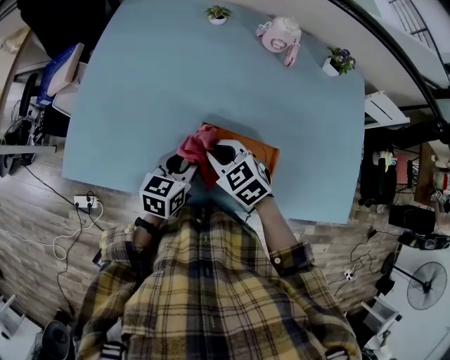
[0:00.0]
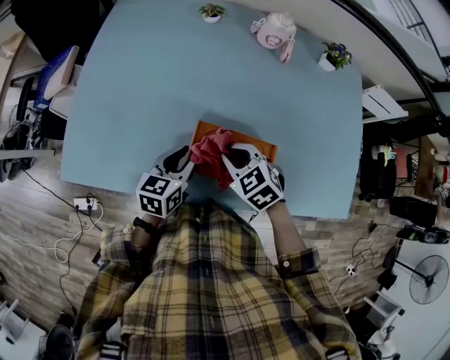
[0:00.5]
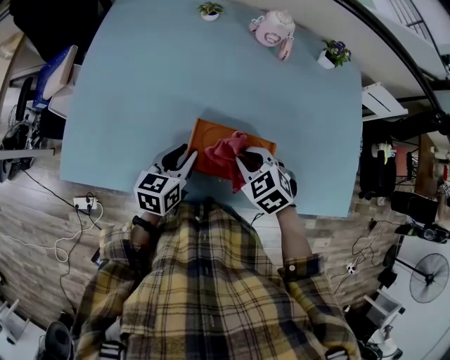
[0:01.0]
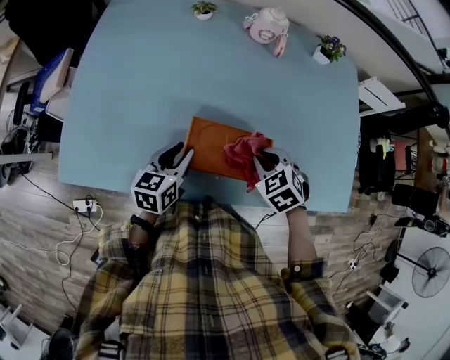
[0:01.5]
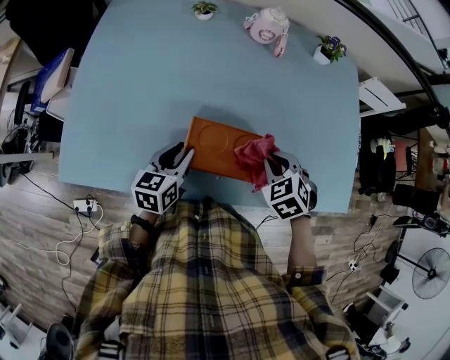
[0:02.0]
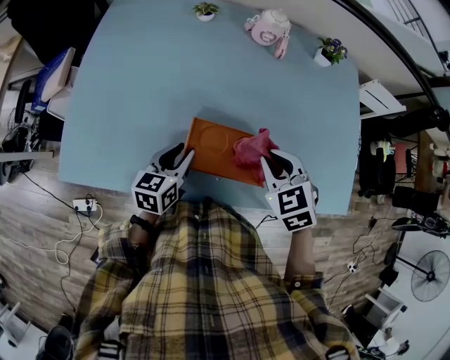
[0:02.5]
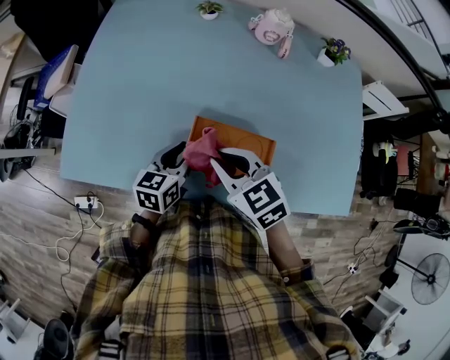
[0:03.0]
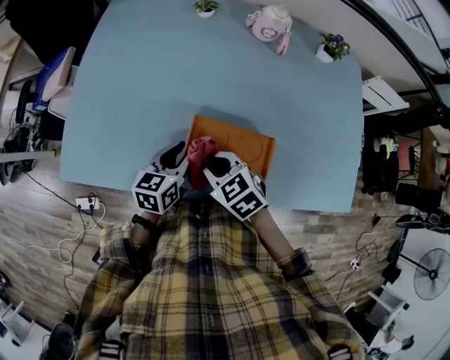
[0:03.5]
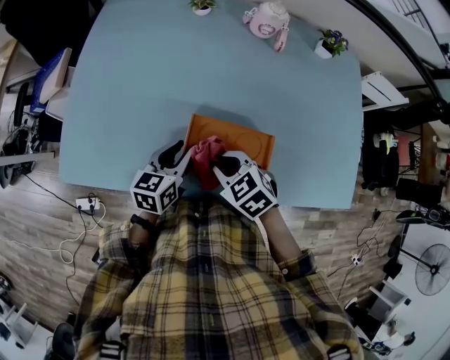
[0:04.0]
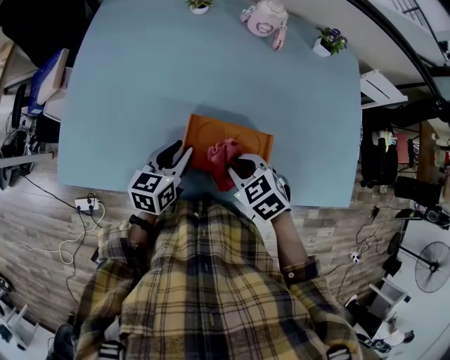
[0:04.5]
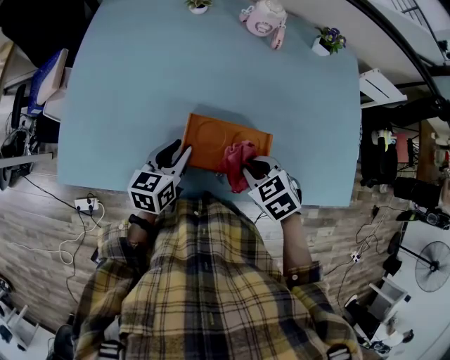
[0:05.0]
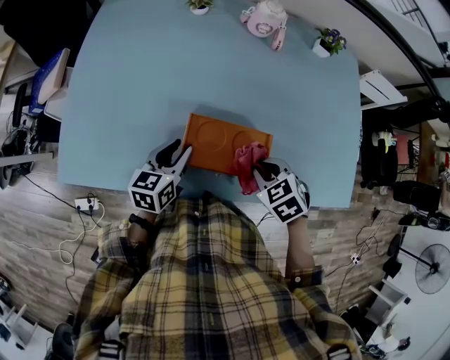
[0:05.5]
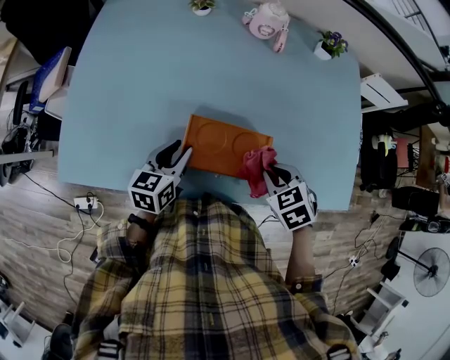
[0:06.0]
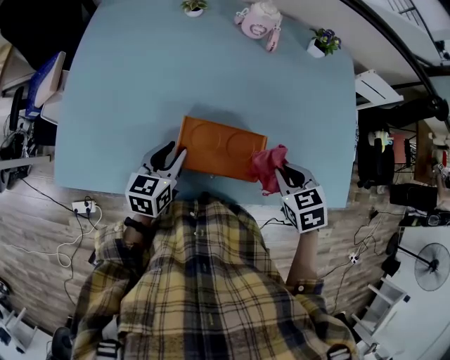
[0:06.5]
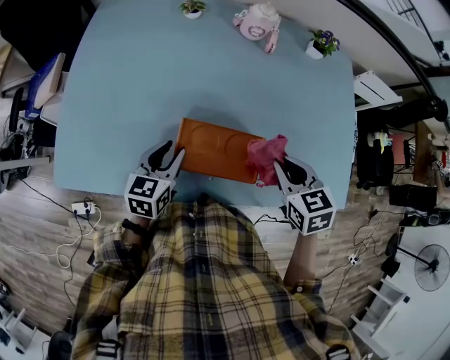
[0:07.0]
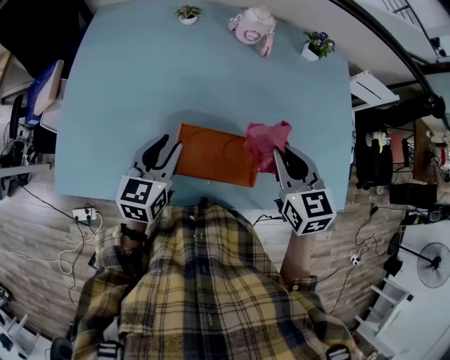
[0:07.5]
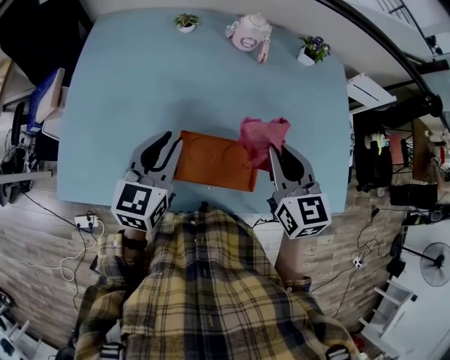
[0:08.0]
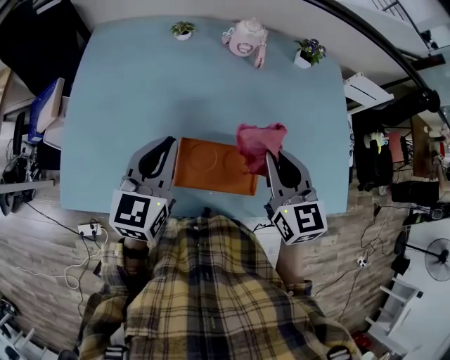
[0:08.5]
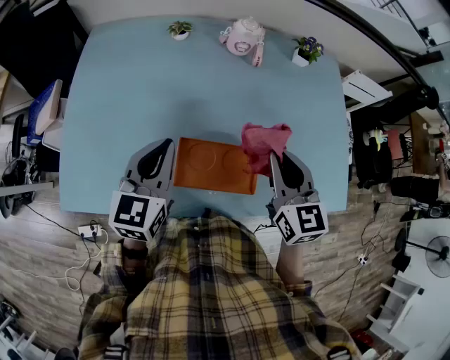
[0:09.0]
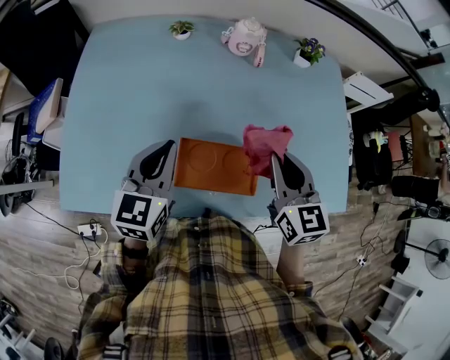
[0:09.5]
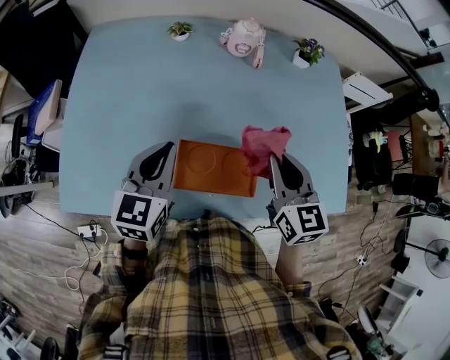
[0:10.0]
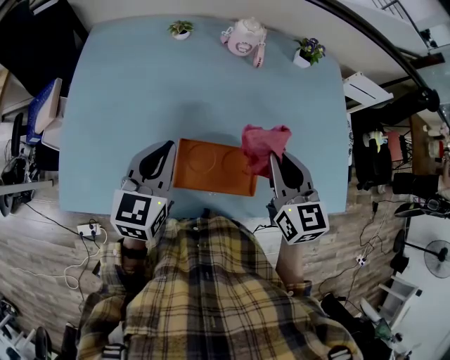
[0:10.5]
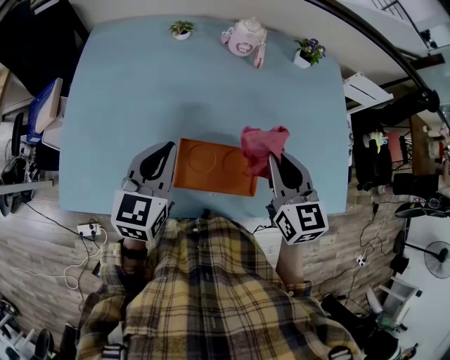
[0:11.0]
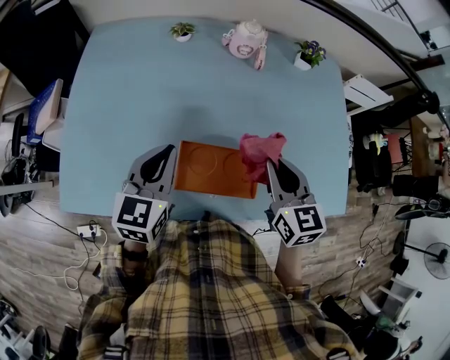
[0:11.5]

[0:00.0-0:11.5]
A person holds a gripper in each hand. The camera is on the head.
0:00.0 to 0:02.0: The right gripper moves to the right, some 20 cm, and rotates about 30 degrees.
0:02.0 to 0:04.0: The right gripper shifts some 15 cm to the left, and turns by some 30 degrees.
0:04.0 to 0:06.0: The right gripper travels to the right by about 15 cm, and turns by approximately 20 degrees.
0:06.0 to 0:07.5: The right gripper goes some 15 cm upward and forward, and points its fingers some 30 degrees further upward. Meanwhile the left gripper travels upward by some 5 cm.
0:07.5 to 0:09.5: The left gripper is displaced upward by some 10 cm, and closes up.
0:09.5 to 0:11.5: The grippers make only small movements.

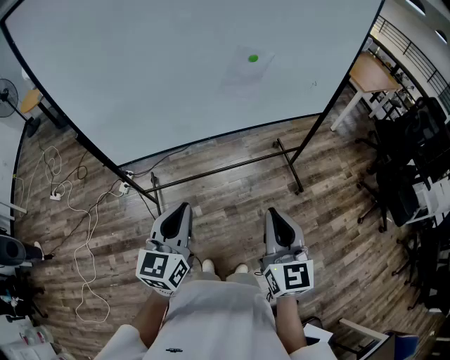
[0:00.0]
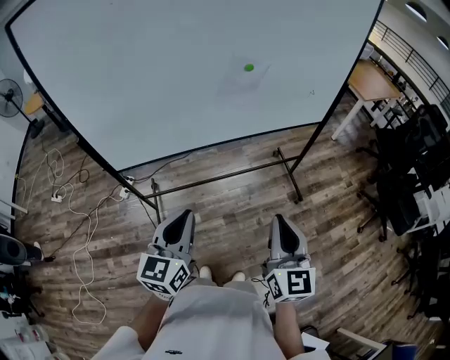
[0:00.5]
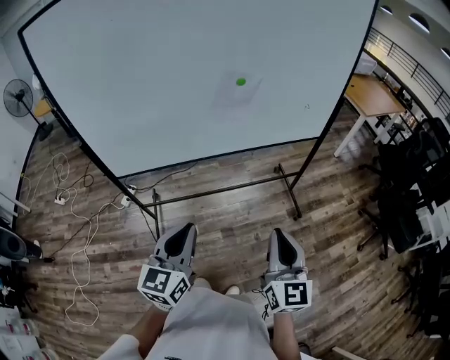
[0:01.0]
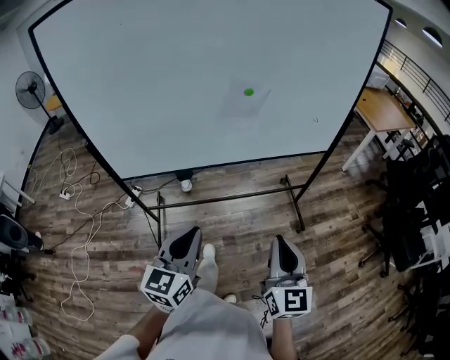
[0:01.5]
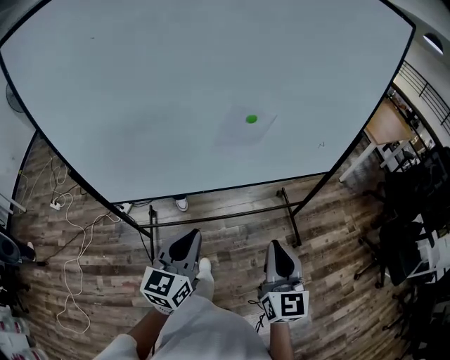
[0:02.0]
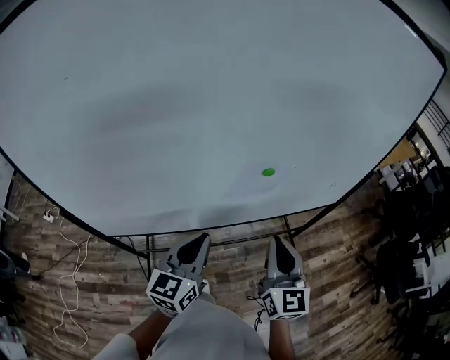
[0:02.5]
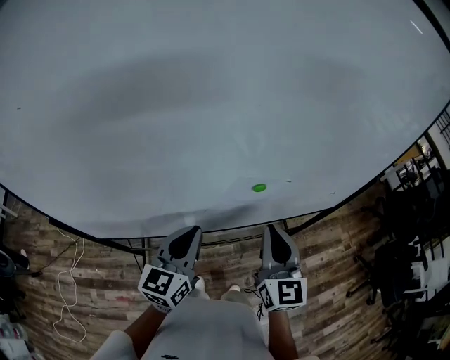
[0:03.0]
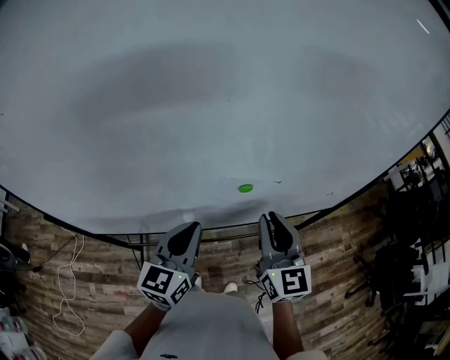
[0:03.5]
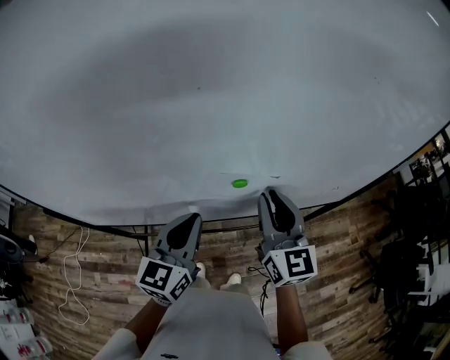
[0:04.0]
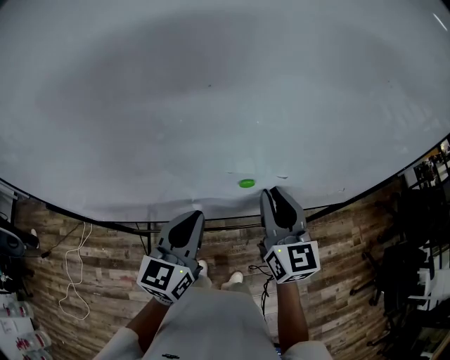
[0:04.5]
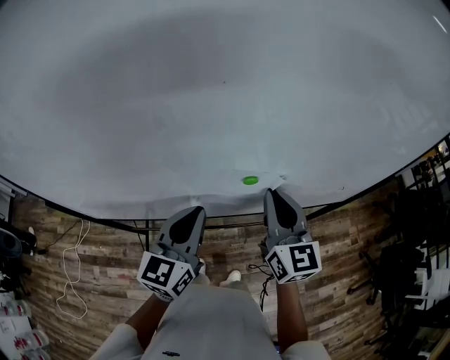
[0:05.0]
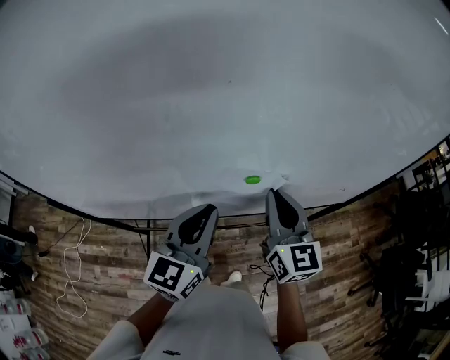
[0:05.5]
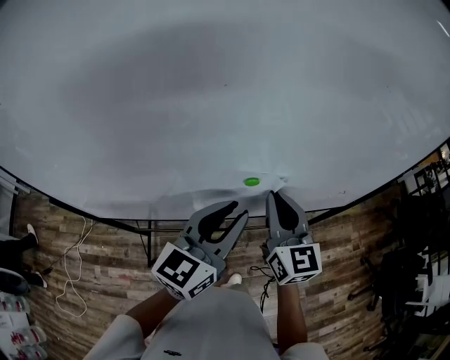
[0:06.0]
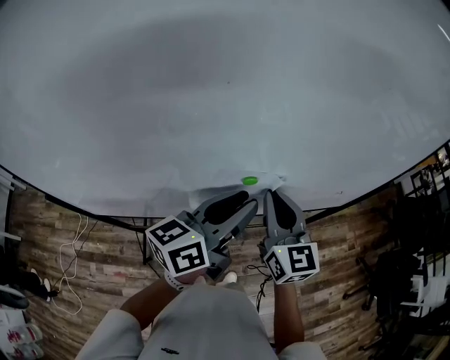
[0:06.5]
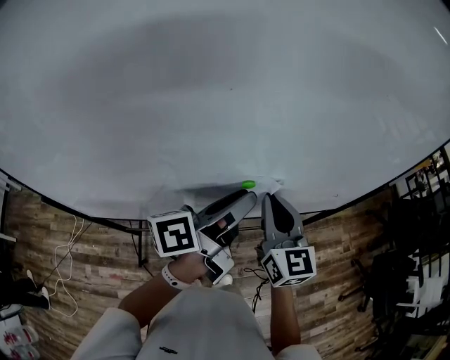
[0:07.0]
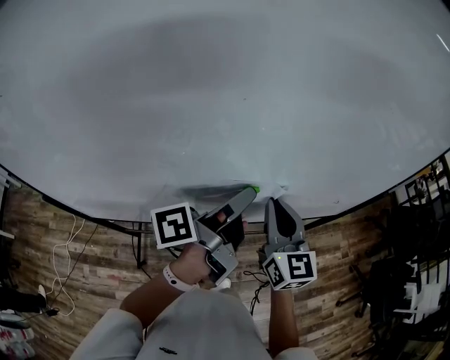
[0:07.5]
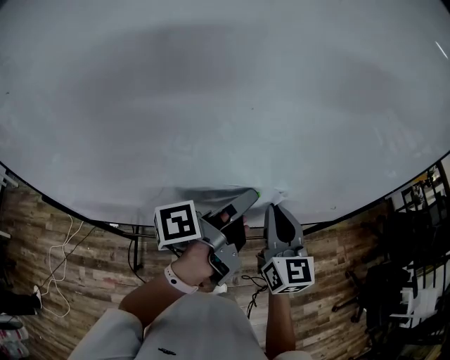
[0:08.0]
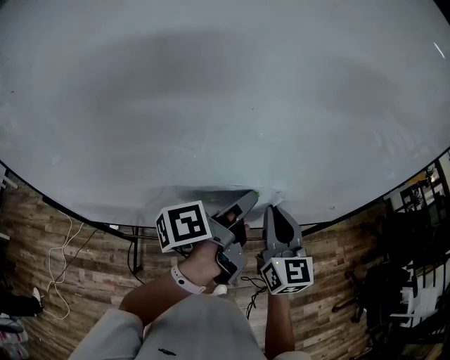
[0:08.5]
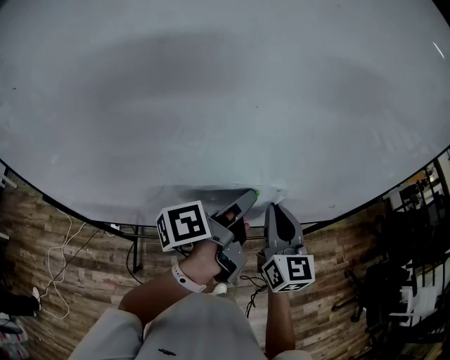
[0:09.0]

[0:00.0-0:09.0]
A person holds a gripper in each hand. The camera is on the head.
0:00.0 to 0:02.0: Both grippers move forward and to the right, approximately 15 cm.
0:02.0 to 0:04.5: Both grippers travel together forward, approximately 30 cm.
0:04.5 to 0:07.0: The left gripper moves to the right and upward, about 10 cm, rotates around the line of its fingers by approximately 50 degrees, counterclockwise from behind, and opens.

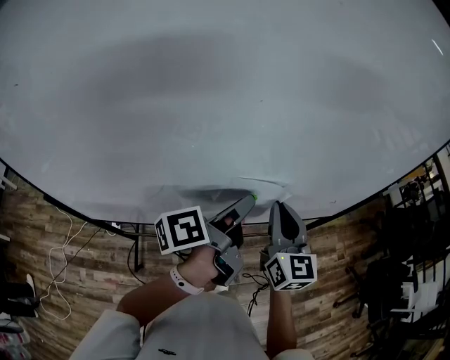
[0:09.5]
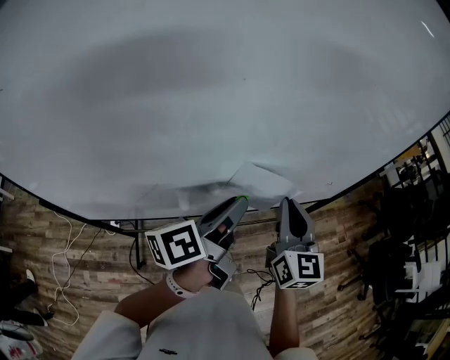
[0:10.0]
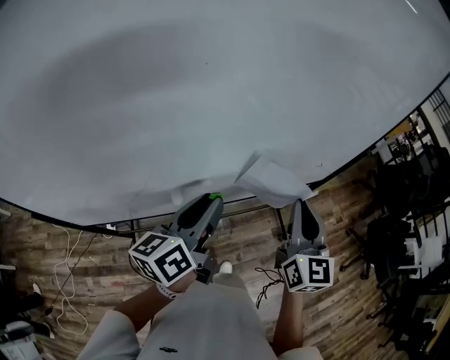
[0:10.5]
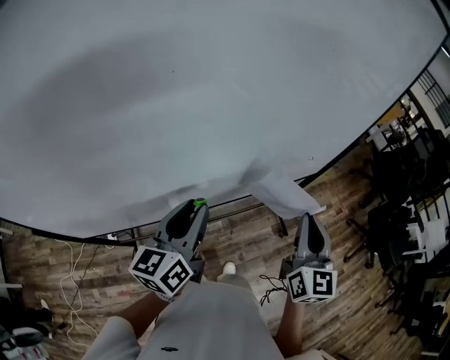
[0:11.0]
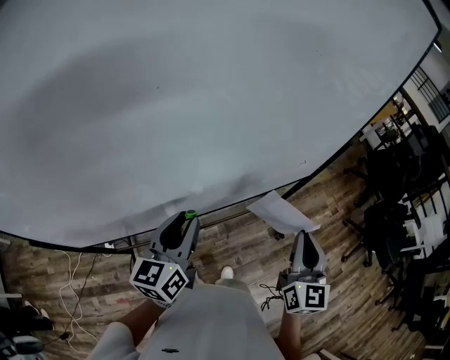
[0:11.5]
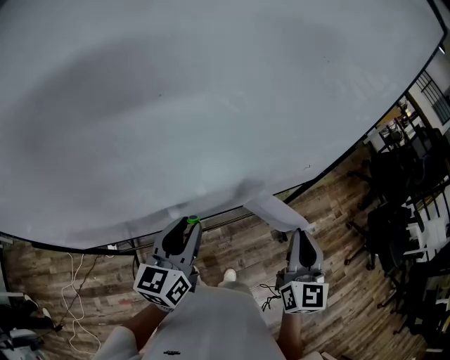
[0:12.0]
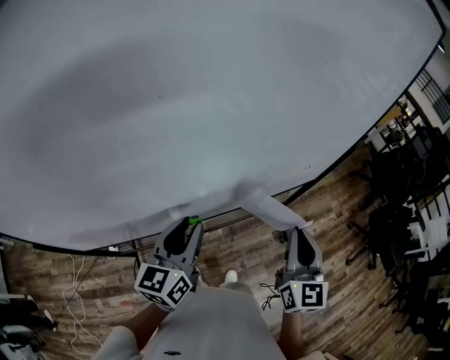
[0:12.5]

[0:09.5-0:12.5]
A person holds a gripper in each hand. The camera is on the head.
0:09.5 to 0:11.0: The left gripper is displaced backward by approximately 5 cm, and rolls clockwise, seen from behind, by approximately 50 degrees; the right gripper heads to the right and backward, covering about 15 cm, and changes its angle by approximately 20 degrees.
0:11.0 to 0:12.5: The grippers make only small movements.

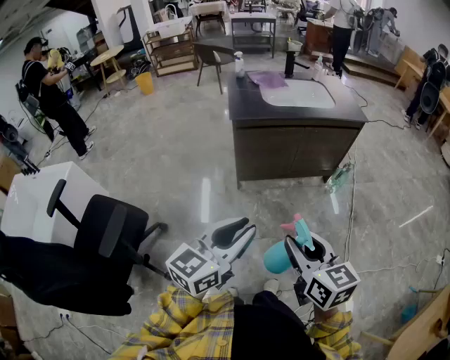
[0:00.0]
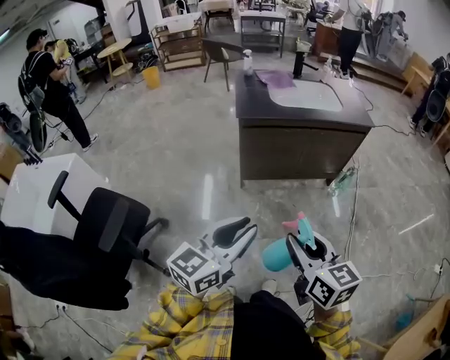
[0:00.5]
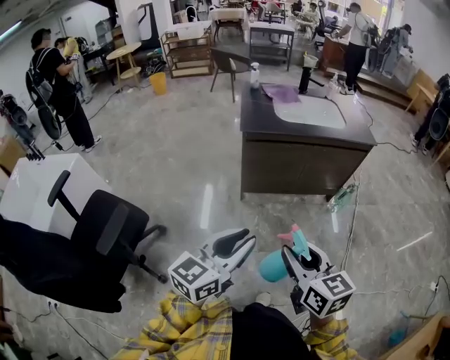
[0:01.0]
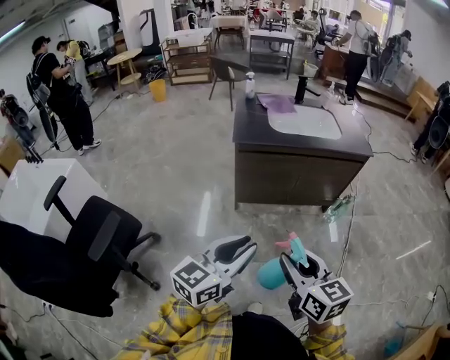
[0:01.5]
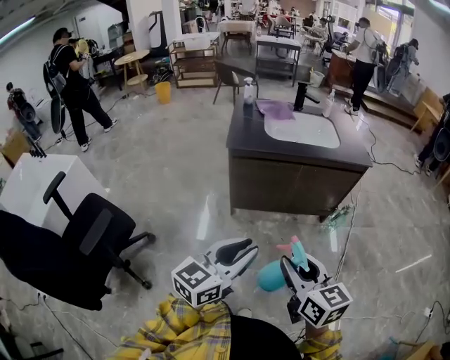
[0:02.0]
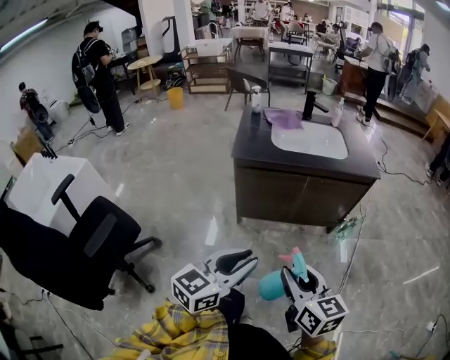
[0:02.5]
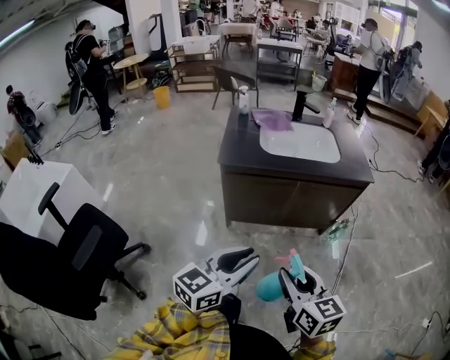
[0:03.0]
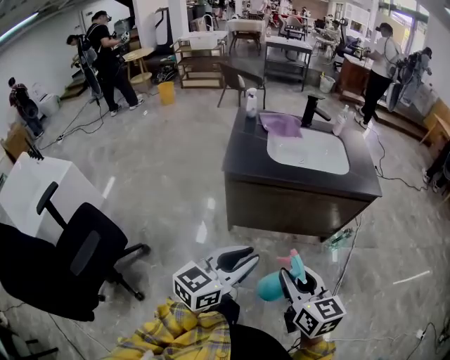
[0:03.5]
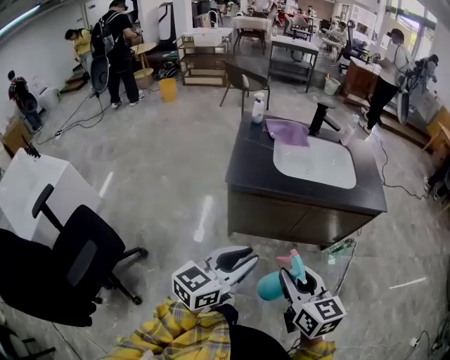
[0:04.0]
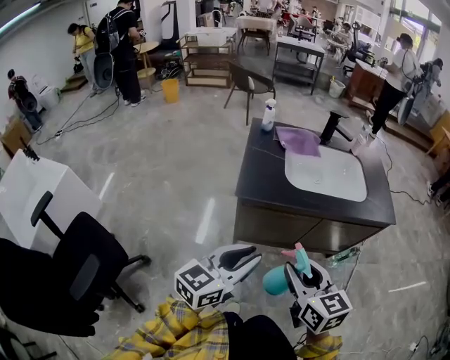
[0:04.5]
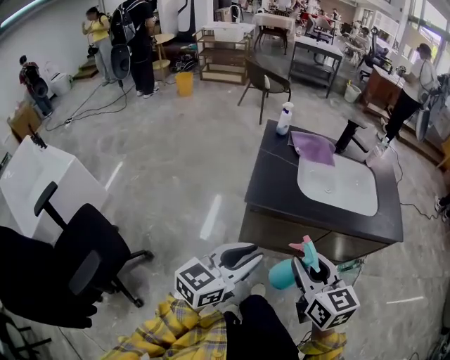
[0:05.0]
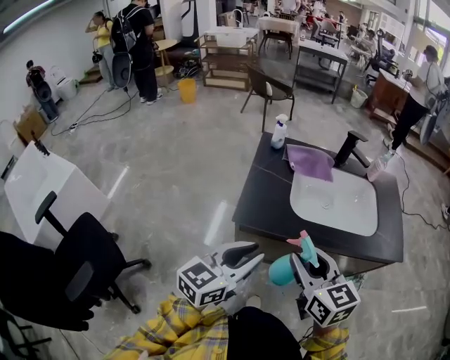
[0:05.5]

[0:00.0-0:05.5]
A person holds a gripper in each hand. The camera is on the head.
0:00.0 to 0:02.0: The left gripper travels to the right and forward by roughly 15 cm, while the right gripper moves forward and to the right, some 15 cm.
0:02.0 to 0:03.5: The grippers both shift forward by about 15 cm.
0:03.5 to 0:05.5: The two grippers go roughly 30 cm forward.
